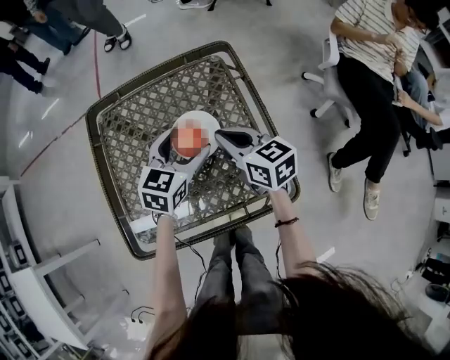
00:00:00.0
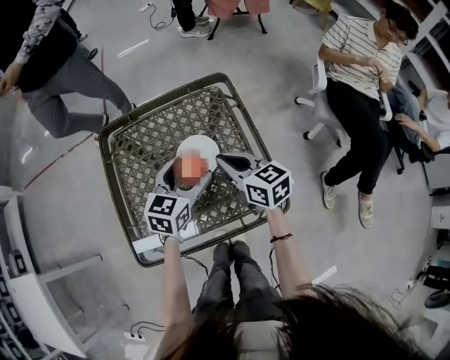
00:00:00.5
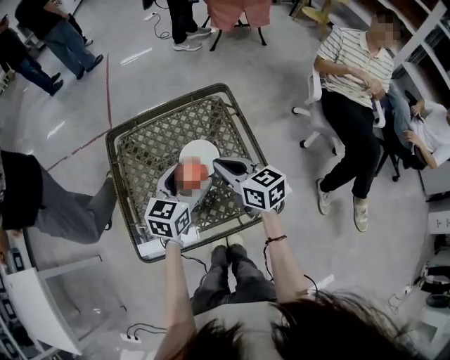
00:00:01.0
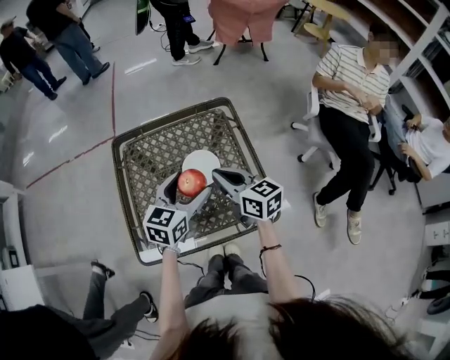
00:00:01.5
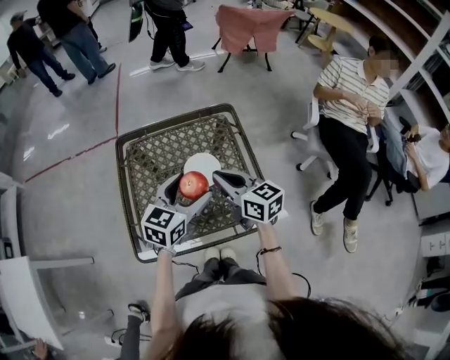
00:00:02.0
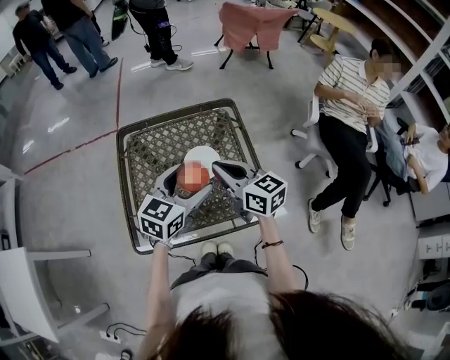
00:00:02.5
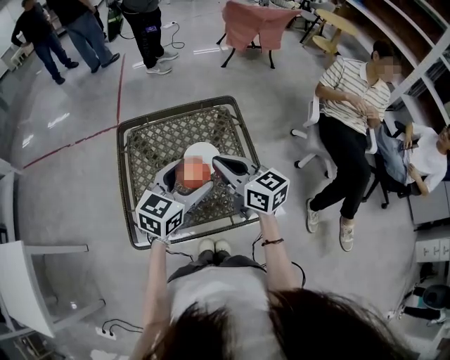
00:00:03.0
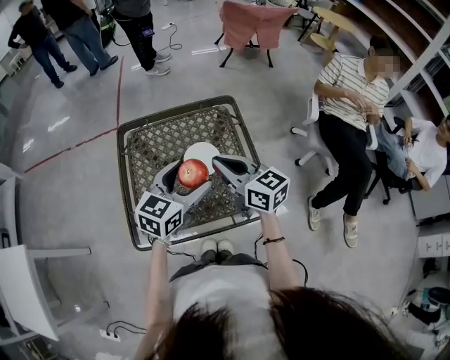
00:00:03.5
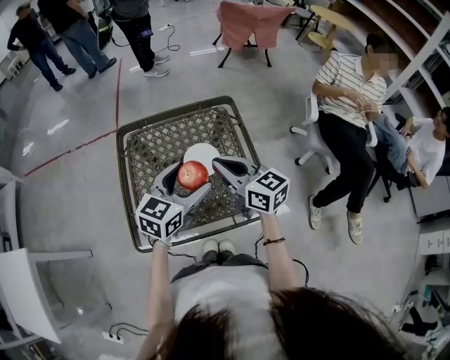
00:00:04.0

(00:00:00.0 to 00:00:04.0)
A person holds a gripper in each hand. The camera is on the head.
00:00:00.0 - 00:00:02.0: The two grippers go roughly 15 cm upward and backward.
00:00:02.0 - 00:00:04.0: The grippers move only a little.

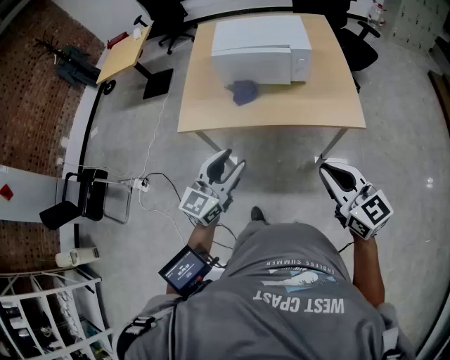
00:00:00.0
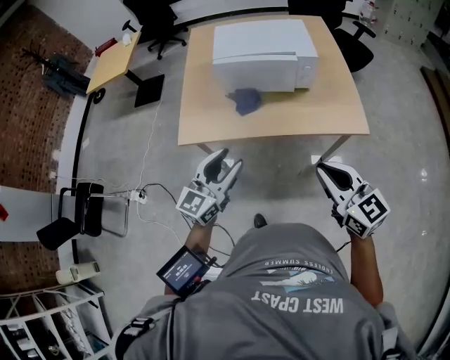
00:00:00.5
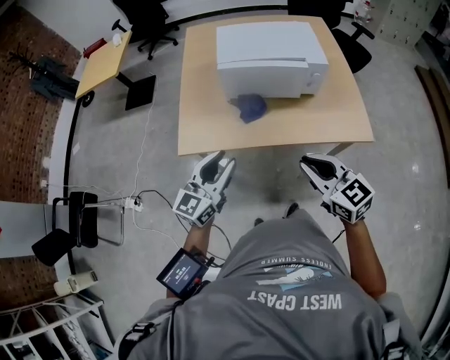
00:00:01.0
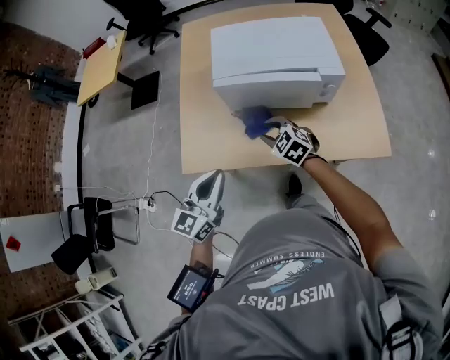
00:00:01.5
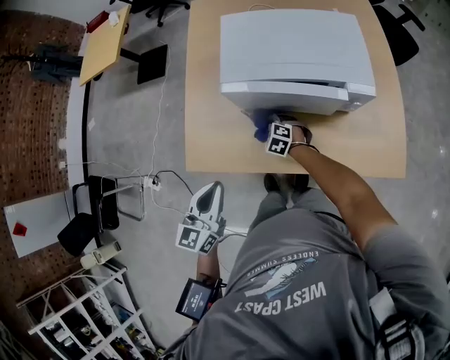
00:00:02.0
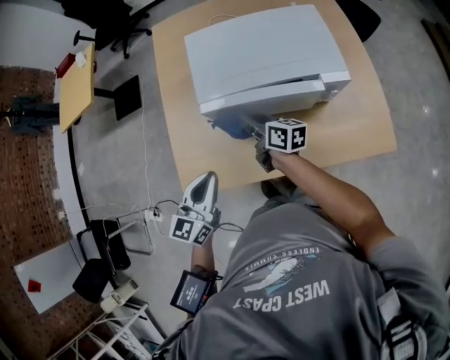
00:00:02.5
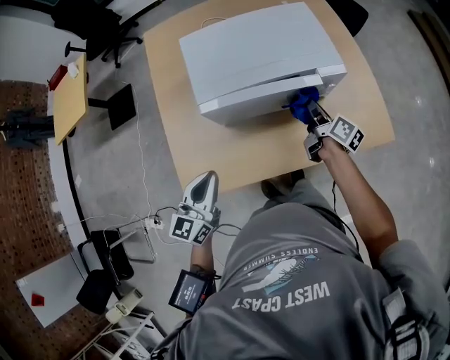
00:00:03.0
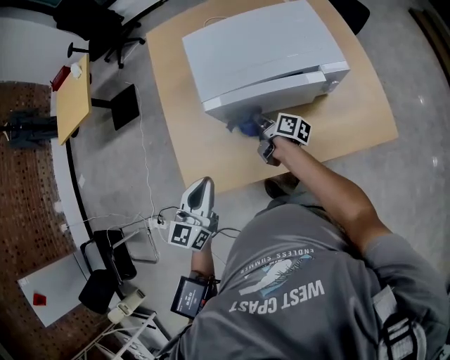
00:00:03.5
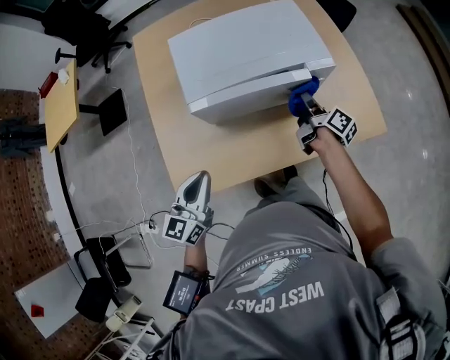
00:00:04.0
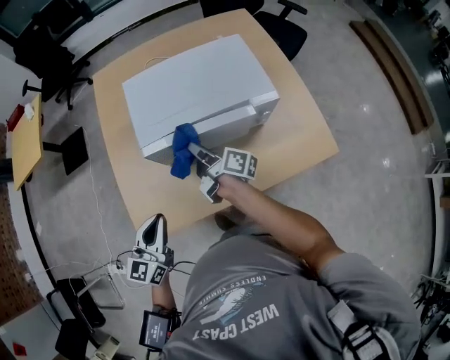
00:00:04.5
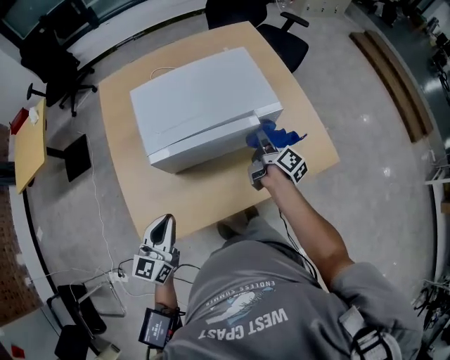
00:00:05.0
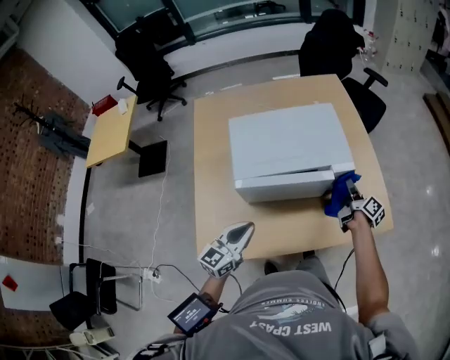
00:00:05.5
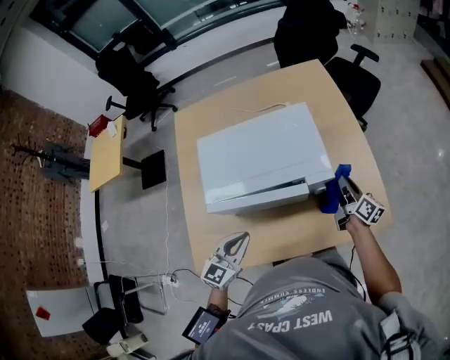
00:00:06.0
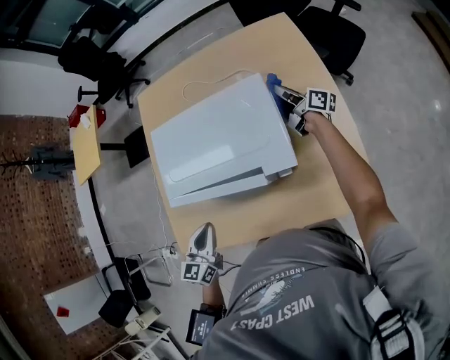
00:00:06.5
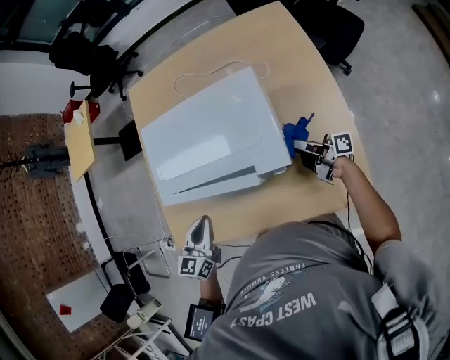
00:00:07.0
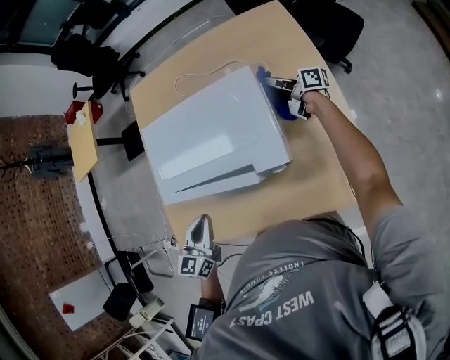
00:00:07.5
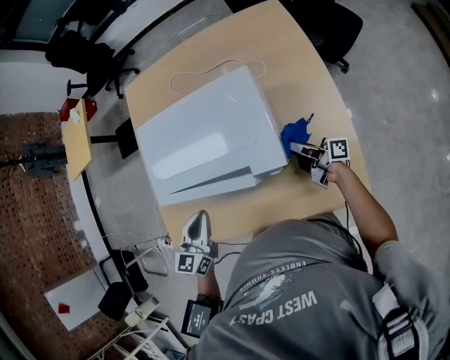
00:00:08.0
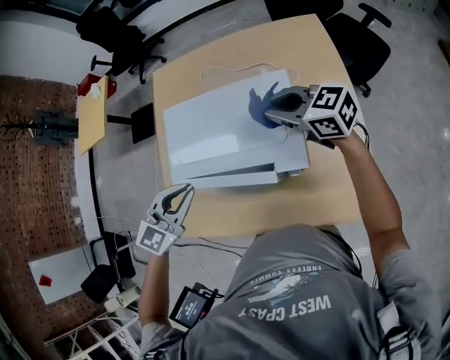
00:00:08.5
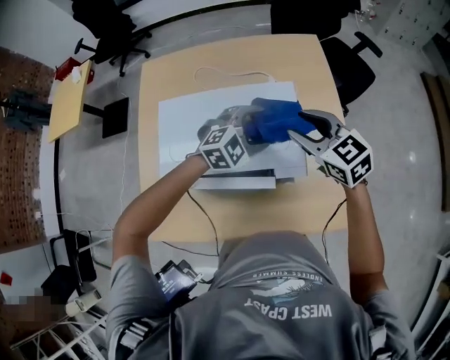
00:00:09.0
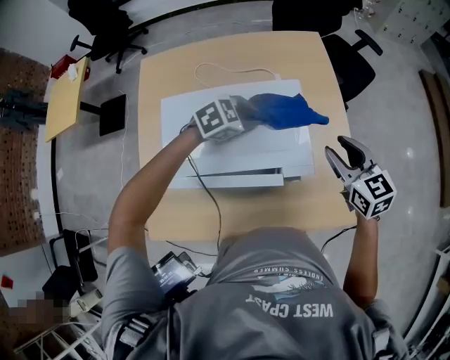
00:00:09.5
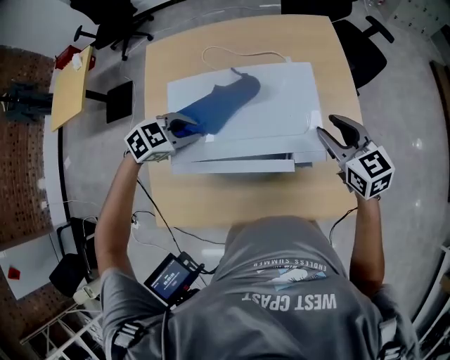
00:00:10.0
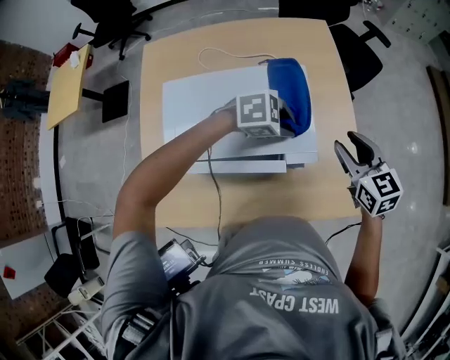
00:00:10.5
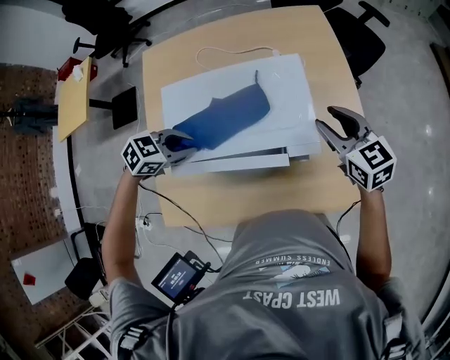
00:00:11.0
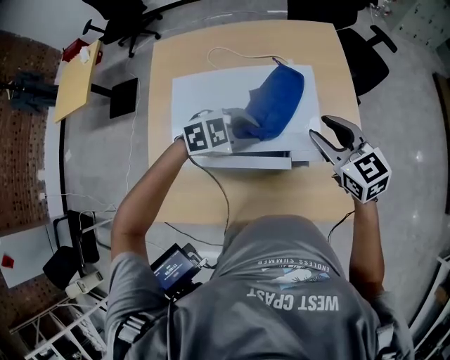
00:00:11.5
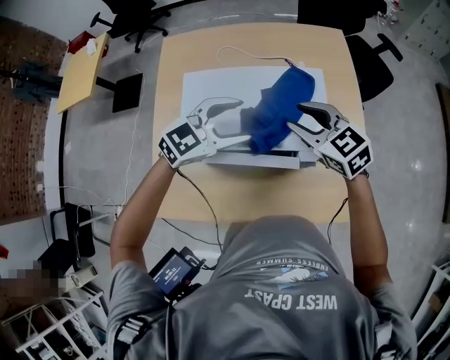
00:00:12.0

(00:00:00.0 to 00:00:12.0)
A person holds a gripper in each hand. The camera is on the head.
00:00:00.0 - 00:00:02.0: The left gripper travels forward and to the left by about 35 cm, rotates some 20 degrees, and closes; the right gripper moves forward, downward and to the left, about 70 cm, angles its fingers downward, by some 50 degrees, and opens.
00:00:02.0 - 00:00:04.0: The left gripper shifts by about 10 cm, and rotates approximately 20 degrees, while the right gripper swings up and down, about 20 cm each way, with 2 reversals, and rolls clockwise, seen from behind, by about 110 degrees.
00:00:04.0 - 00:00:06.0: The grippers both shift to the right and forward by approximately 15 cm.
00:00:06.0 - 00:00:08.0: The right gripper heads downward, covering roughly 5 cm, and turns by roughly 50 degrees. The left gripper changes place by roughly 10 cm, and swivels roughly 20 degrees.
00:00:08.0 - 00:00:10.0: The left gripper moves roughly 10 cm upward and comes back, turns by about 60 degrees, and opens and closes again, while the right gripper heads upward, covering roughly 20 cm, twists roughly 70 degrees counterclockwise, seen from behind, and opens its fingers.
00:00:10.0 - 00:00:12.0: The right gripper changes place by about 10 cm, and swivels approximately 20 degrees. The left gripper swivels some 30 degrees, and opens.

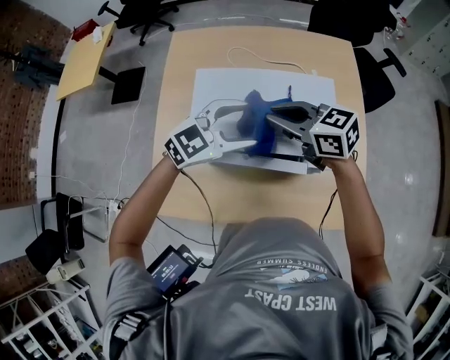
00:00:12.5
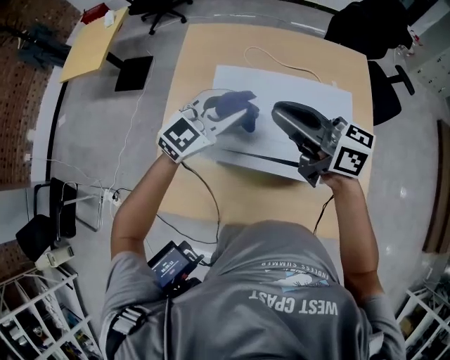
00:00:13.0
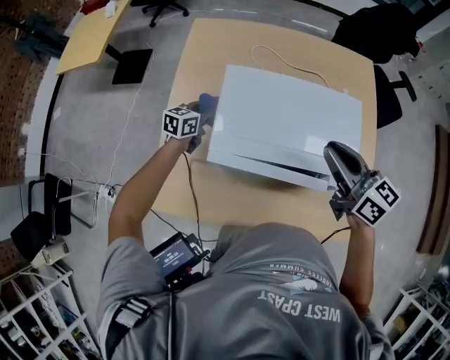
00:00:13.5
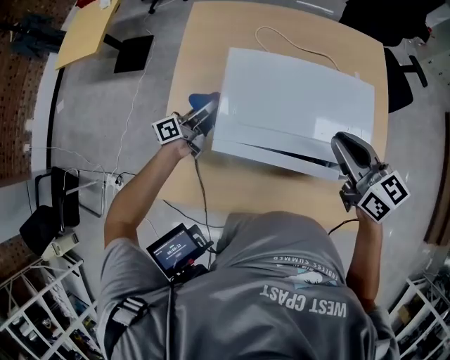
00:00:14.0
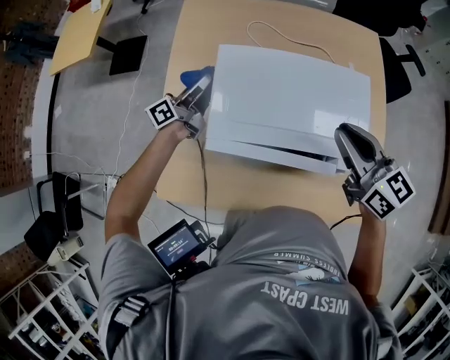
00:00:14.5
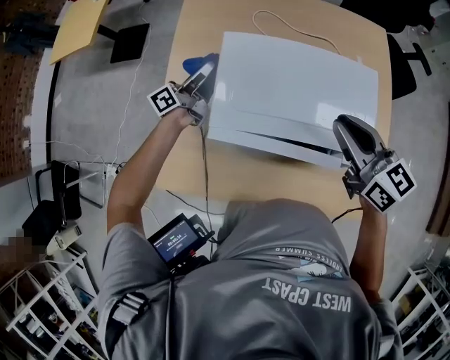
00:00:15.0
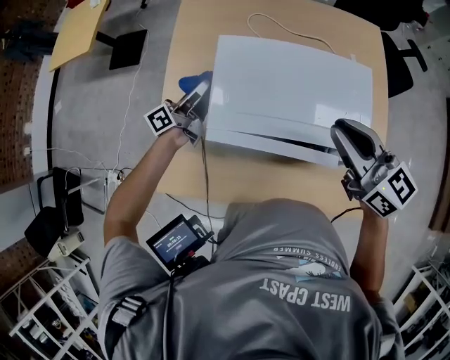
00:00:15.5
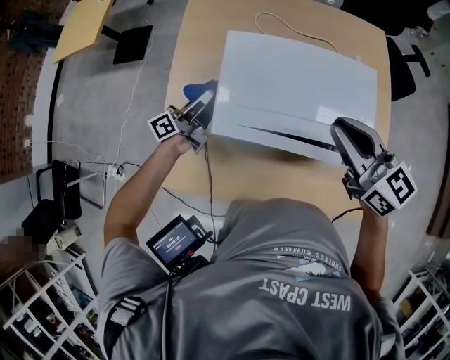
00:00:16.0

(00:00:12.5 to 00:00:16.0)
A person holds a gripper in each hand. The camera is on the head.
00:00:12.5 - 00:00:14.5: The right gripper reaches some 10 cm upward, then returns, and changes its angle by about 20 degrees, while the left gripper moves about 30 cm, rolls counterclockwise, seen from behind, by approximately 70 degrees, and closes up.
00:00:14.5 - 00:00:16.0: The left gripper travels backward by approximately 10 cm.

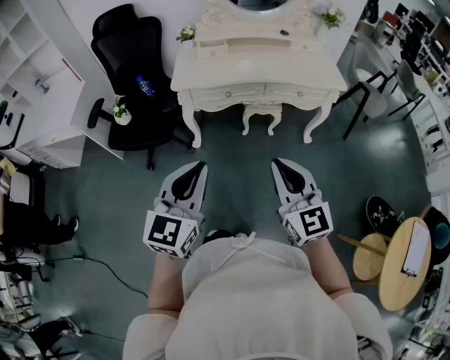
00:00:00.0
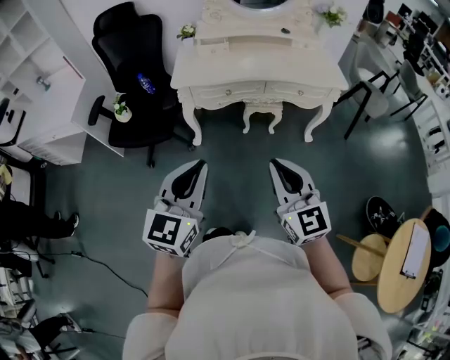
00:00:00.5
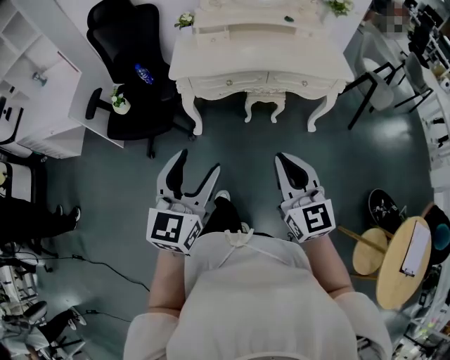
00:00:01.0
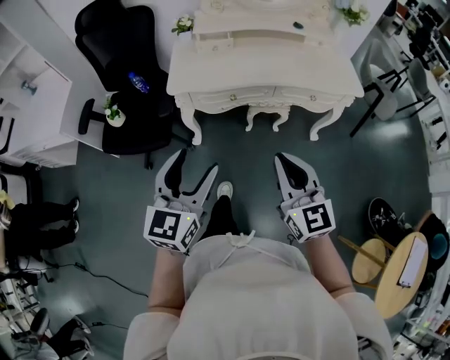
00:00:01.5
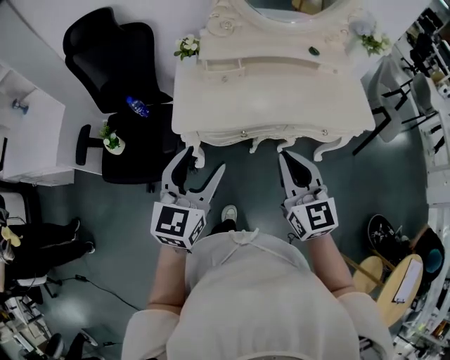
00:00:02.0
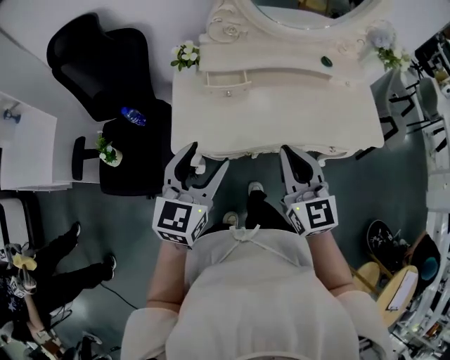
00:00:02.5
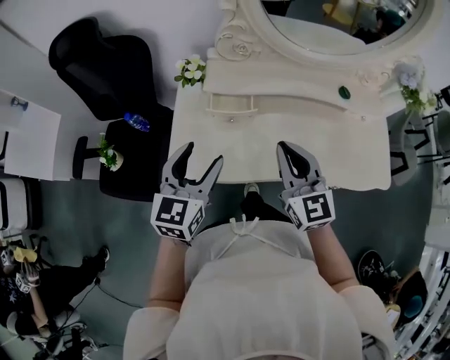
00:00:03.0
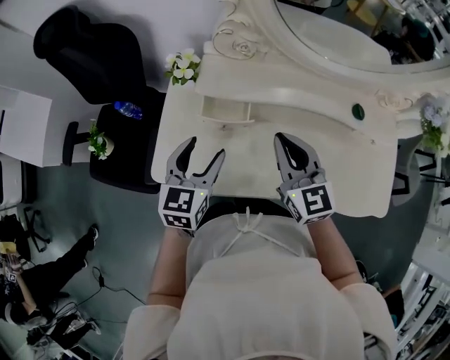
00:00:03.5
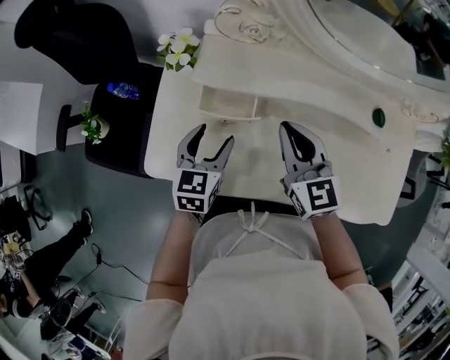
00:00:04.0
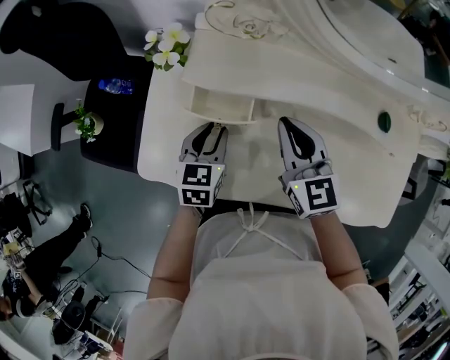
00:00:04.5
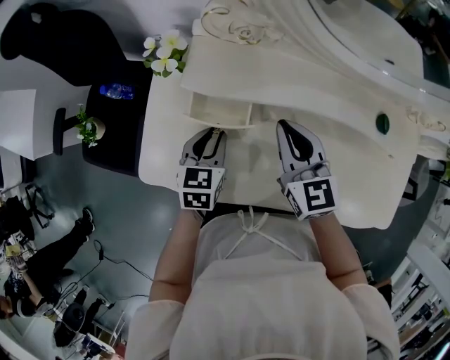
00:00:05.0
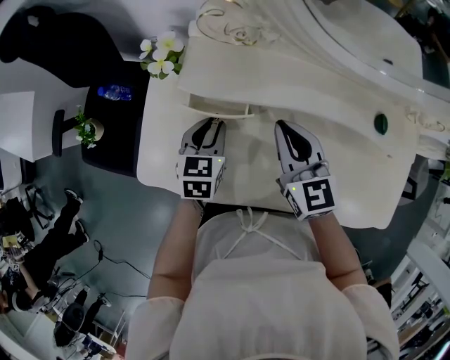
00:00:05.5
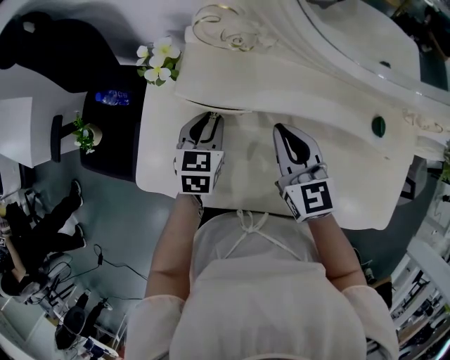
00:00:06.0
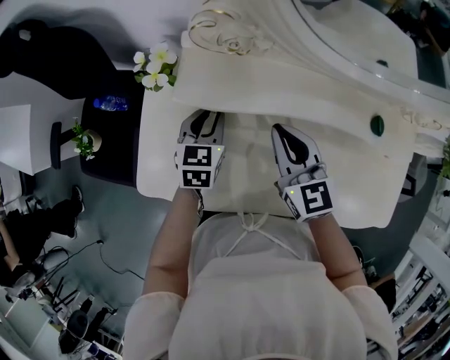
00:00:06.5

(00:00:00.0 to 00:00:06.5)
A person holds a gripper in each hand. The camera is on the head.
00:00:00.0 - 00:00:02.0: Both grippers move forward, approximately 35 cm. The left gripper opens.
00:00:02.0 - 00:00:04.5: The left gripper goes some 50 cm forward and downward, tips its fingers downward by approximately 30 degrees, and closes. The right gripper shifts approximately 40 cm forward, and changes its angle by some 20 degrees.
00:00:04.5 - 00:00:06.5: The left gripper travels forward by about 10 cm.
